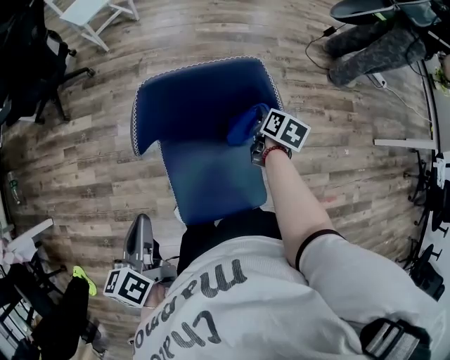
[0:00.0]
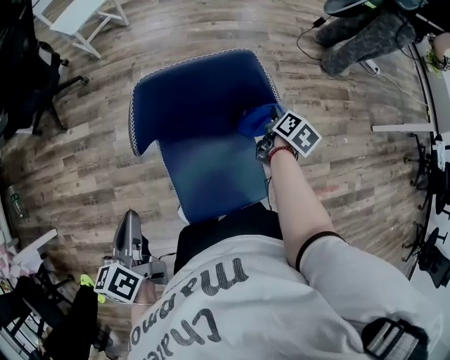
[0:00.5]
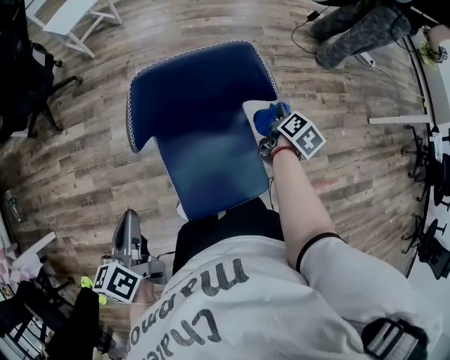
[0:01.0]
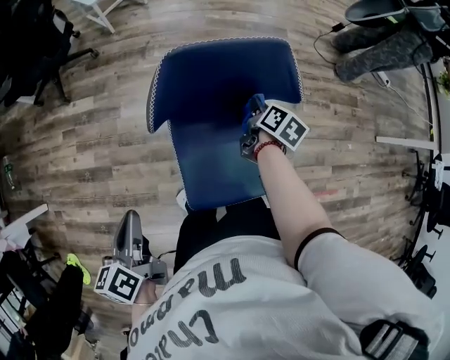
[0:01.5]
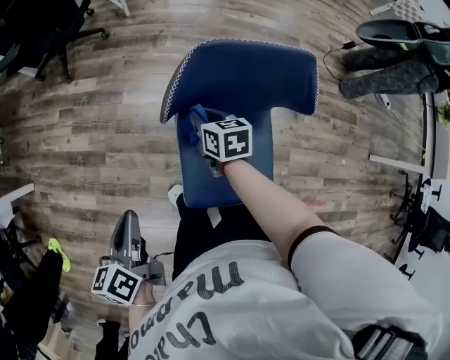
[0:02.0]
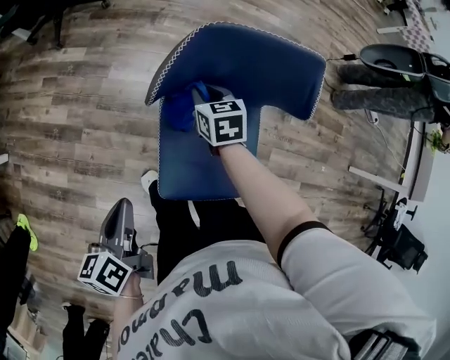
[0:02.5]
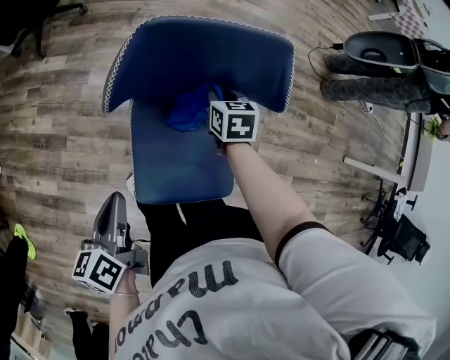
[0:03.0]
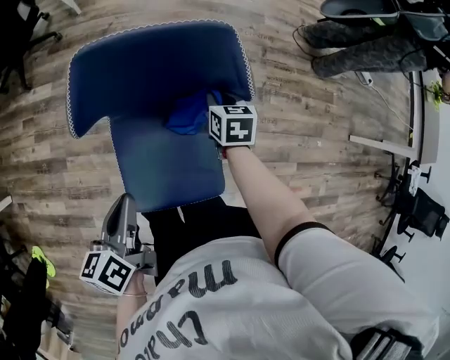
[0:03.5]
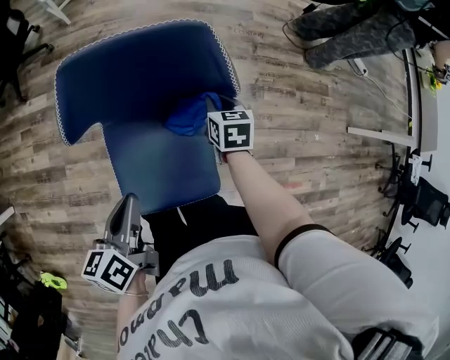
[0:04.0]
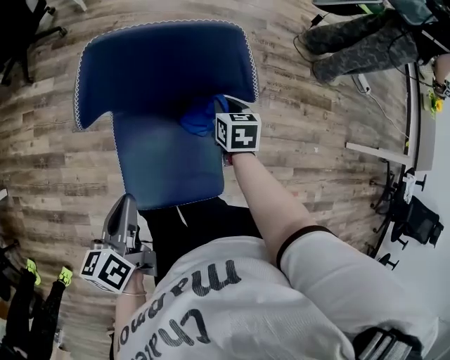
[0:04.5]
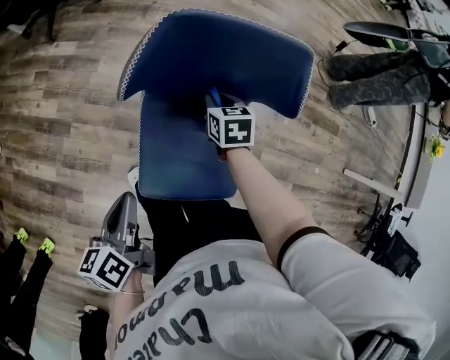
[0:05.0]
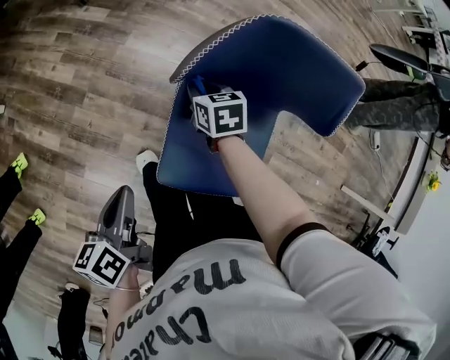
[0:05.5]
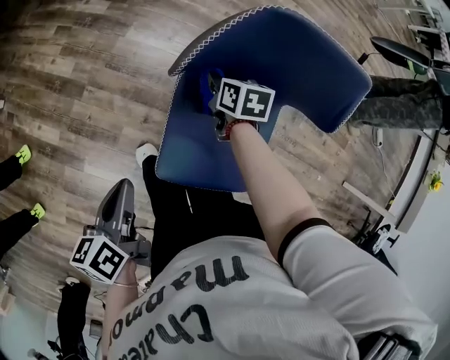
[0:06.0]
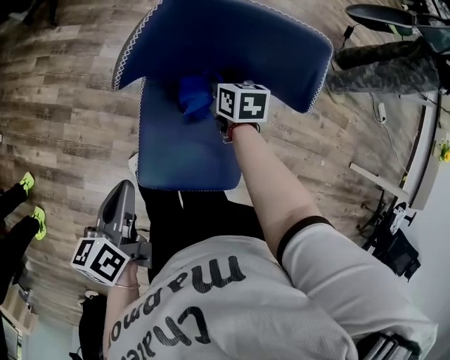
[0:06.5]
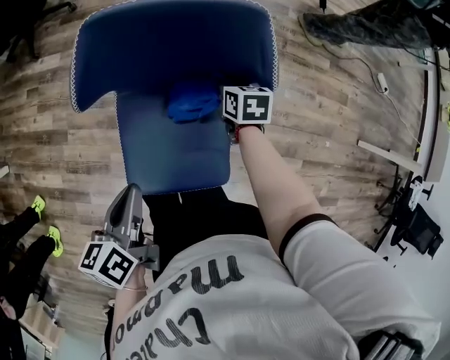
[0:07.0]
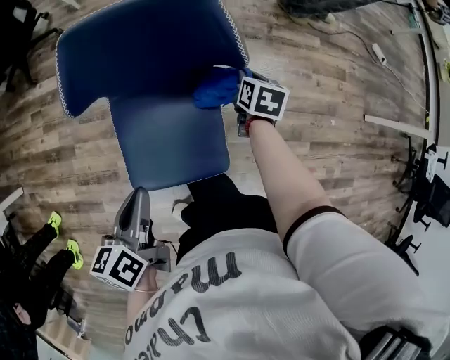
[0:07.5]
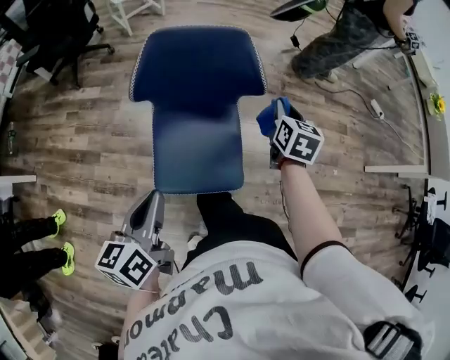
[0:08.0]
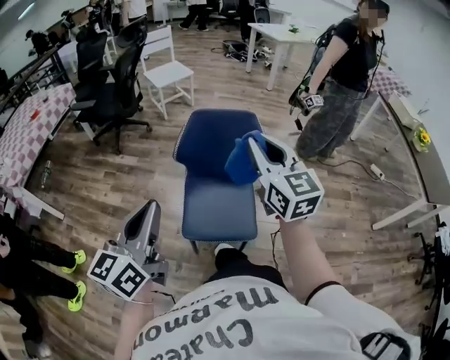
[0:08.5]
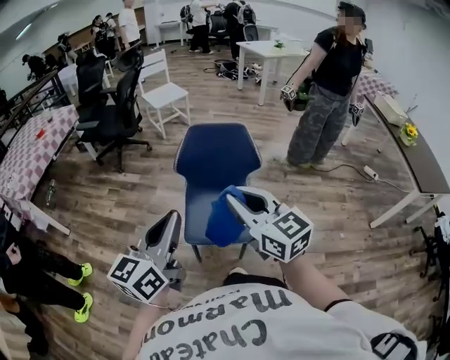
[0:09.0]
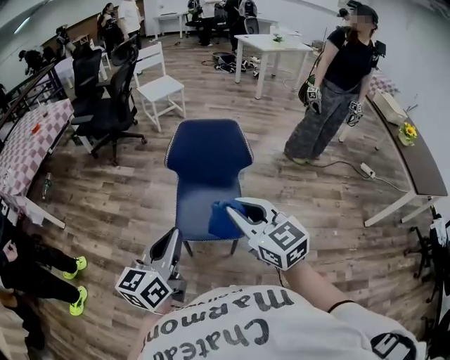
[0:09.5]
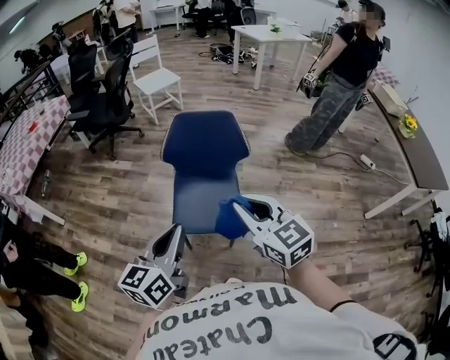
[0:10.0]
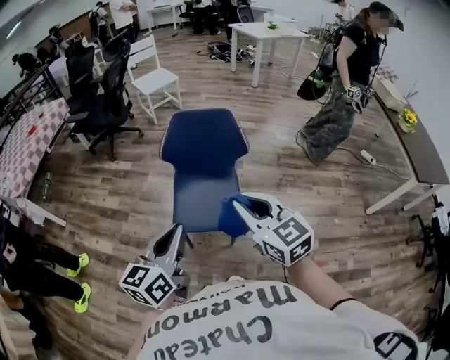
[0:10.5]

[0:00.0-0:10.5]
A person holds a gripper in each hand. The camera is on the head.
0:00.0 to 0:02.0: The left gripper moves roughly 10 cm; the right gripper shifts by approximately 30 cm, and rotates some 40 degrees.
0:02.0 to 0:04.0: Both grippers travel together to the right, about 25 cm. The right gripper changes its angle by approximately 20 degrees.
0:06.5 to 0:08.5: The left gripper is displaced upward and backward by some 35 cm, and angles its fingers upward, by some 40 degrees. Meanwhile the right gripper goes some 60 cm upward and backward, and points its fingers roughly 50 degrees further upward.
0:08.5 to 0:10.5: The left gripper shifts approximately 15 cm to the right and backward, while the right gripper heads backward, covering approximately 20 cm.

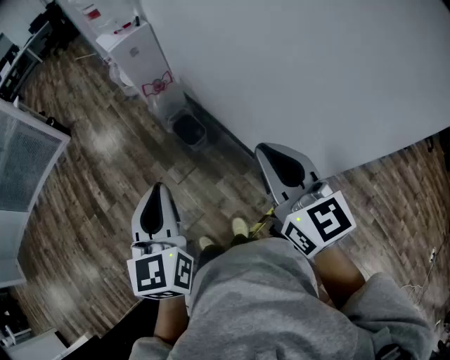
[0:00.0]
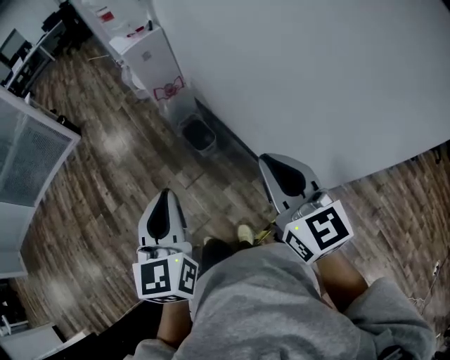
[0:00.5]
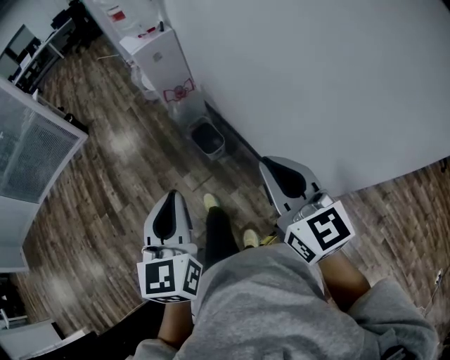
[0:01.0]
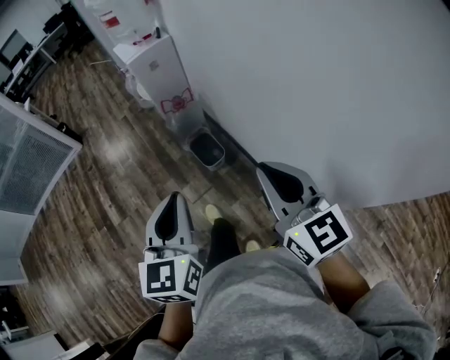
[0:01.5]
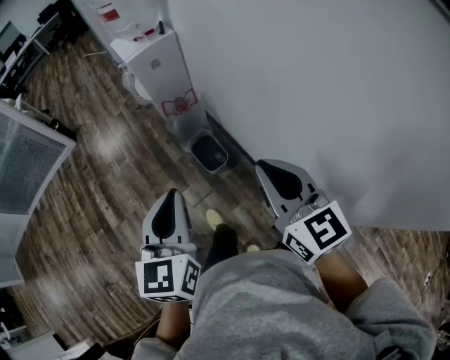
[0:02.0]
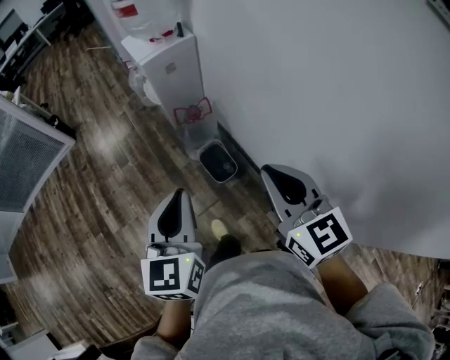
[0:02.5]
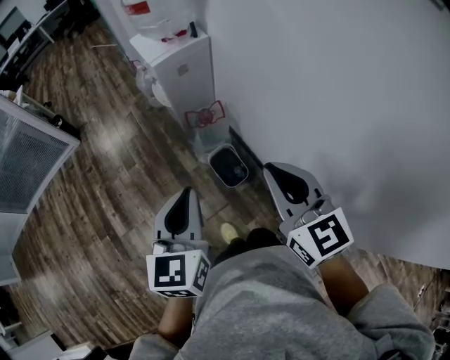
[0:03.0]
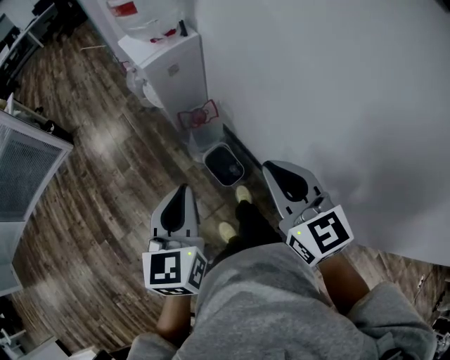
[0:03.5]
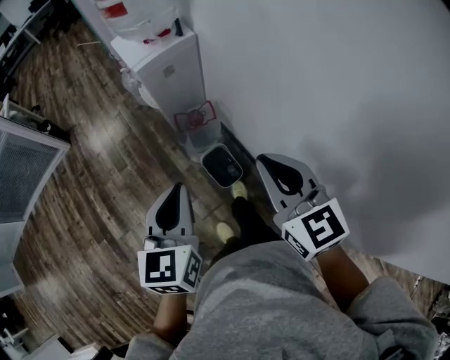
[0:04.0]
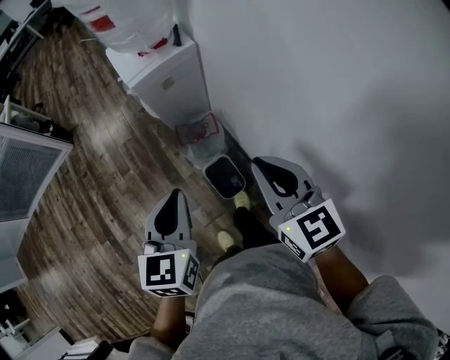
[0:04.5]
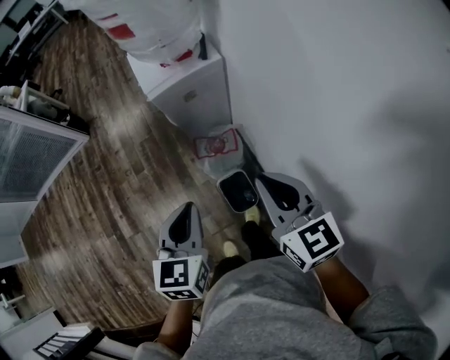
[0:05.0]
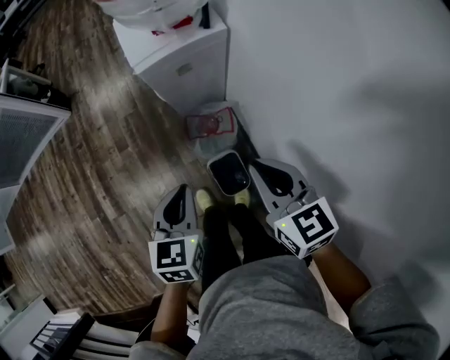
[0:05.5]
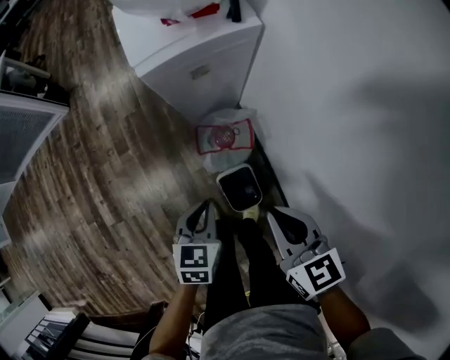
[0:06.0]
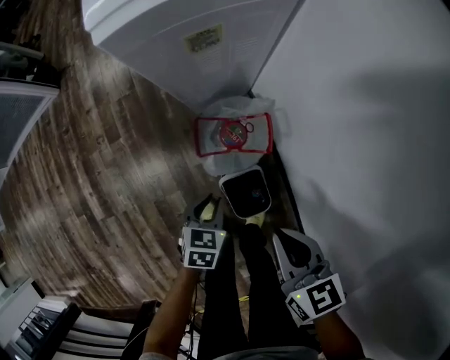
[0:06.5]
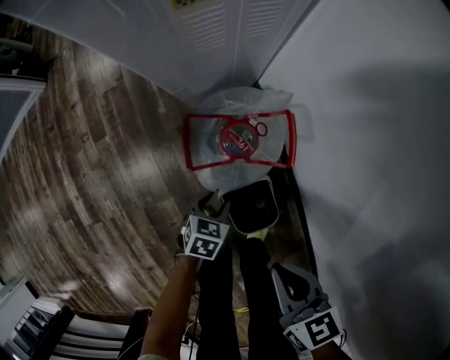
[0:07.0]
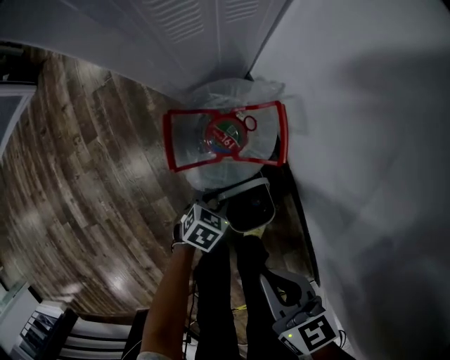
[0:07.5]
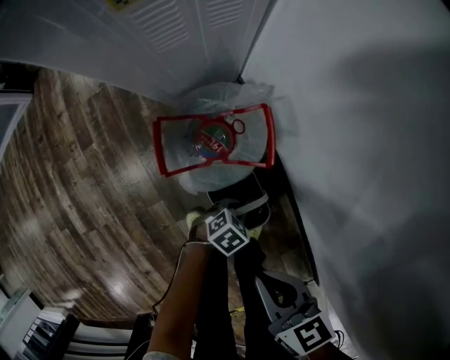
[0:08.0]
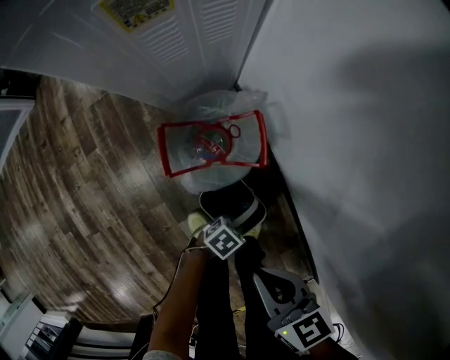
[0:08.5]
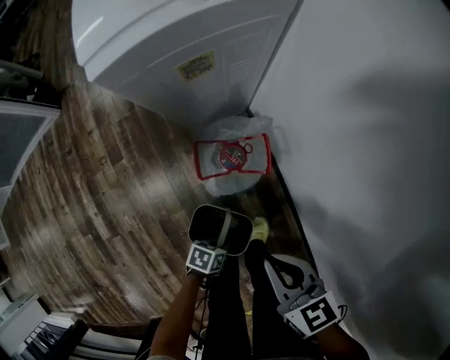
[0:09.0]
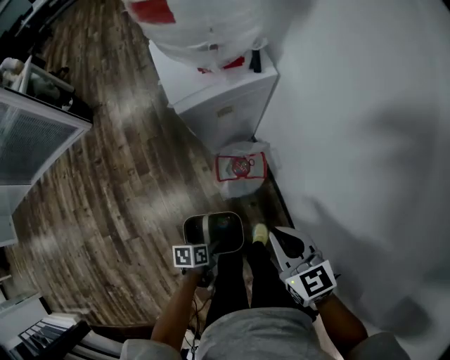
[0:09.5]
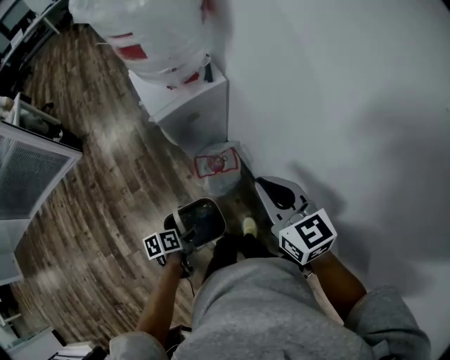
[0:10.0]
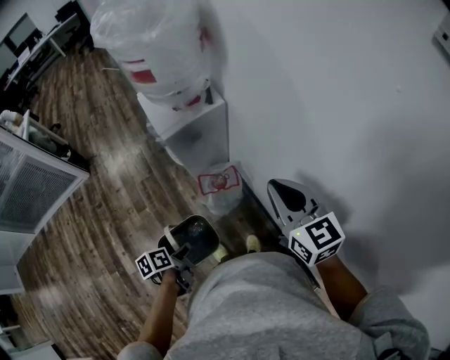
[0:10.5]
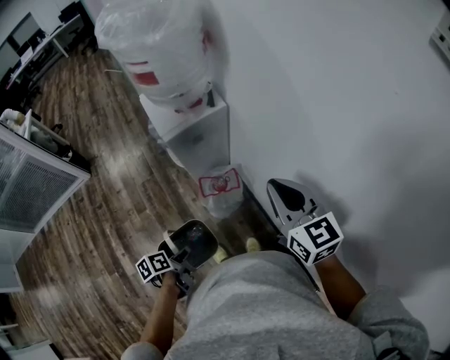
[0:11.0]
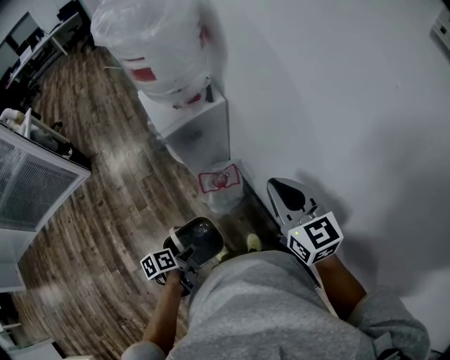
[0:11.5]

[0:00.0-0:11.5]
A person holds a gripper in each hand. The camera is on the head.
0:00.0 to 0:02.0: The grippers both shift forward by about 20 cm.
0:02.0 to 0:04.0: The two grippers go about 20 cm forward.
0:04.0 to 0:06.0: Both grippers move downward and forward, approximately 30 cm. The left gripper turns by approximately 20 degrees. Meanwhile the right gripper rotates roughly 20 degrees.
0:06.0 to 0:07.5: The right gripper moves downward, approximately 25 cm. The left gripper travels downward by approximately 40 cm, rotates roughly 40 degrees, and opens.
0:07.5 to 0:09.5: The two grippers go approximately 30 cm upward. The left gripper rotates around the line of its fingers by about 50 degrees, counterclockwise from behind, and closes. Meanwhile the right gripper changes its angle by some 20 degrees.
0:09.5 to 0:11.5: Both grippers travel together upward, roughly 20 cm. The right gripper swivels roughly 20 degrees.

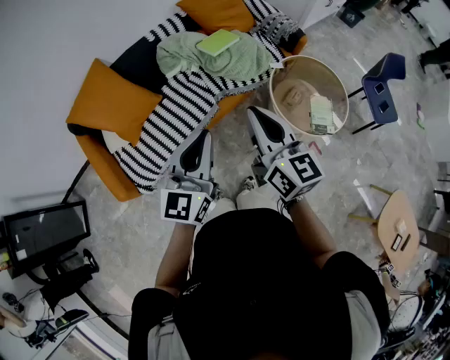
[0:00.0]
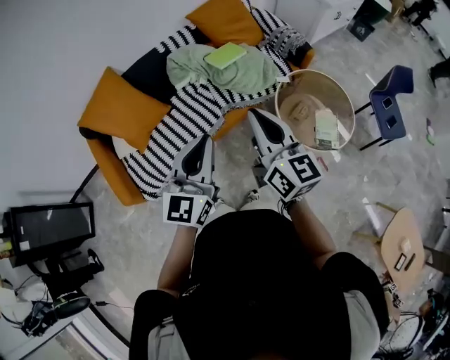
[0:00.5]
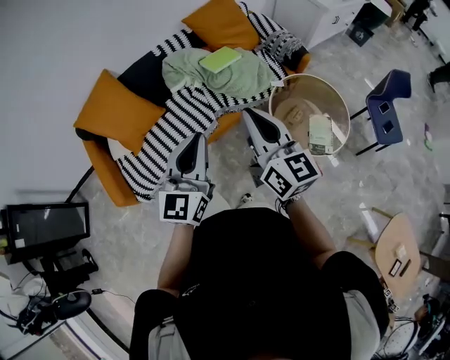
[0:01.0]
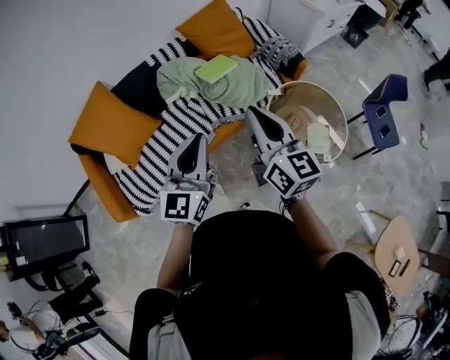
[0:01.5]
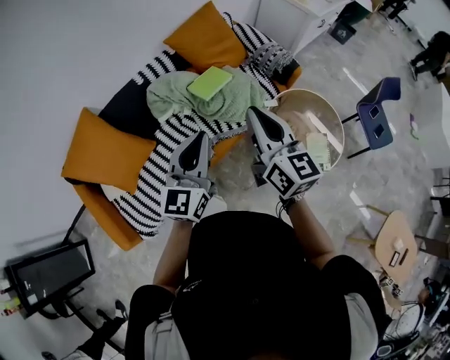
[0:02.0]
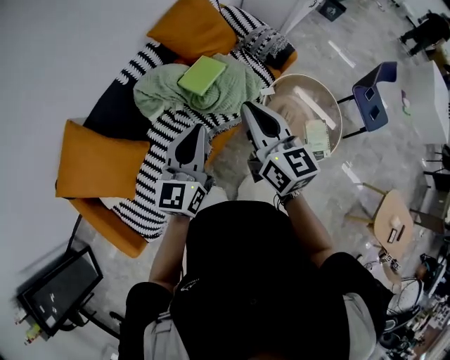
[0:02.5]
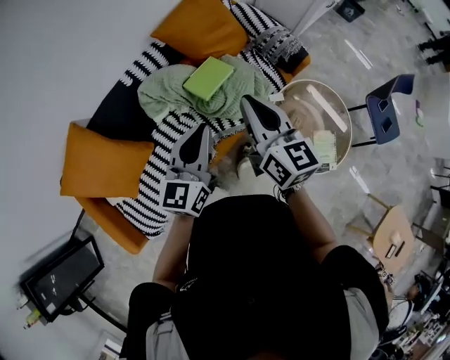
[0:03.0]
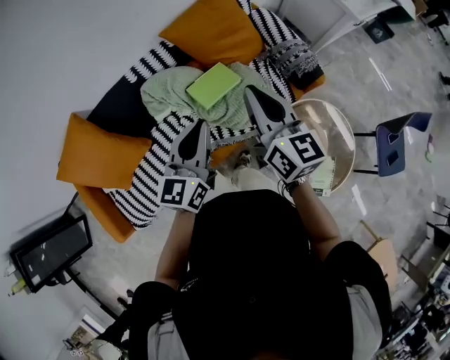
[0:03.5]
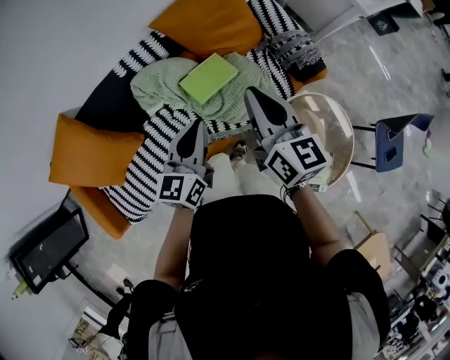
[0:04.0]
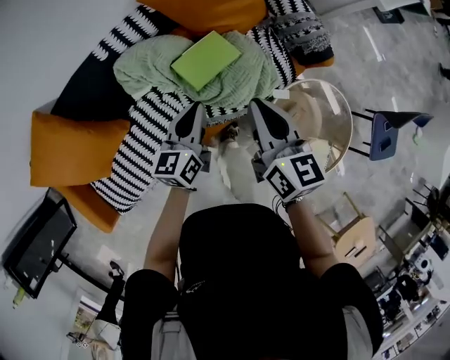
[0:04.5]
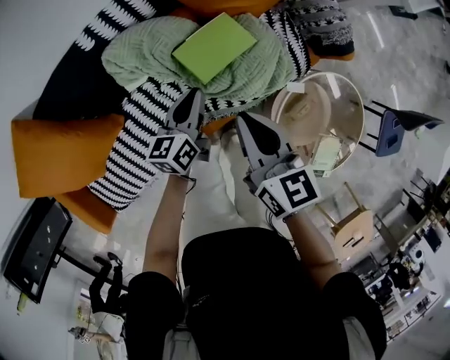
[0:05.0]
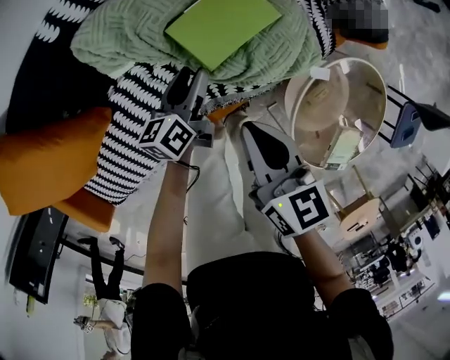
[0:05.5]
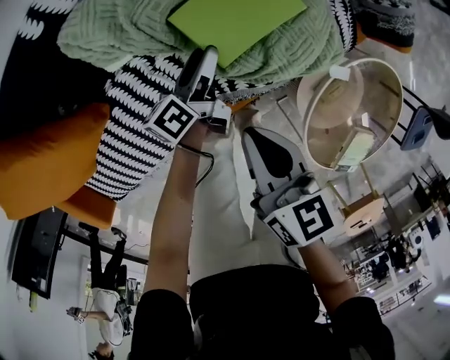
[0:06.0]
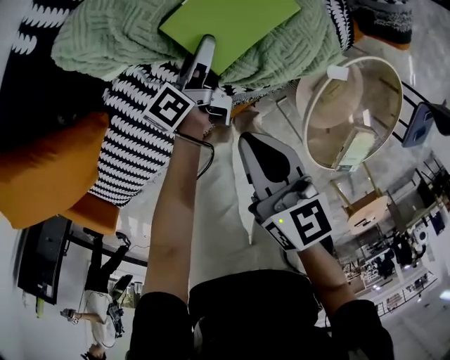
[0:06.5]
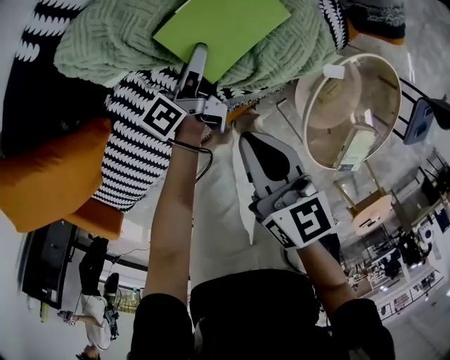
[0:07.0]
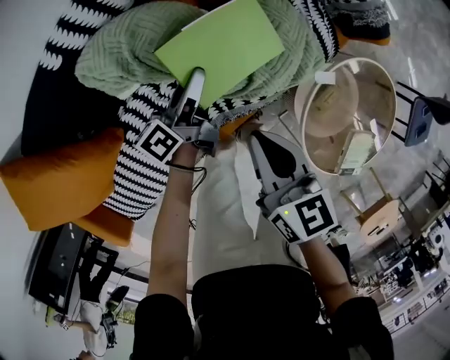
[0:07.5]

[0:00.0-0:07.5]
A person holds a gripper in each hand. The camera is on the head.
0:00.0 to 0:02.0: Both grippers move forward, some 25 cm.
0:02.0 to 0:04.0: The right gripper goes roughly 30 cm forward. The left gripper moves forward and downward, about 30 cm, and rotates some 20 degrees.
0:04.0 to 0:05.5: Both grippers move downward, some 35 cm. The right gripper rotates about 30 degrees; the left gripper turns by about 40 degrees, and opens.
0:05.5 to 0:07.5: The left gripper goes downward and returns, about 5 cm each way, and changes its angle by roughly 20 degrees.
